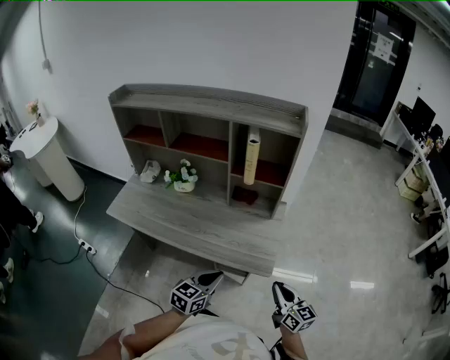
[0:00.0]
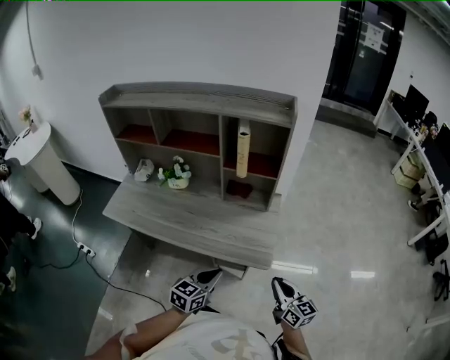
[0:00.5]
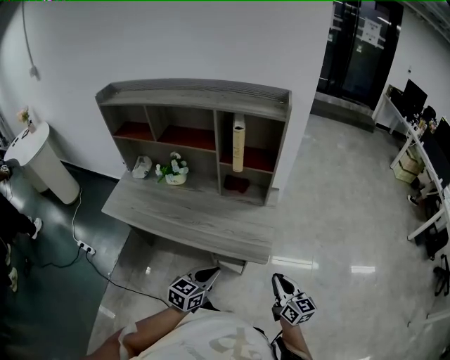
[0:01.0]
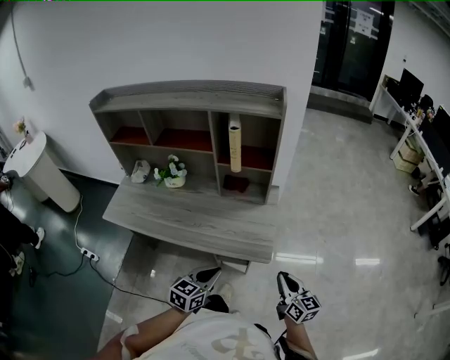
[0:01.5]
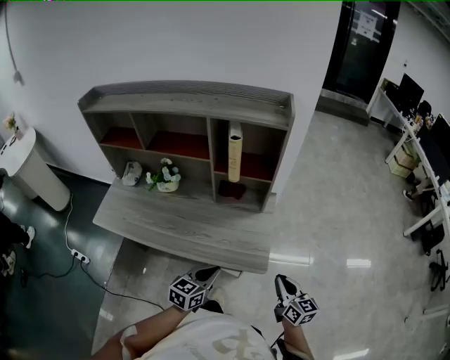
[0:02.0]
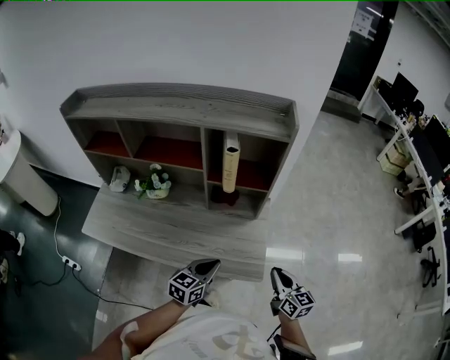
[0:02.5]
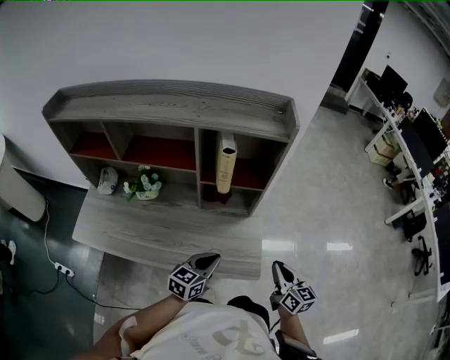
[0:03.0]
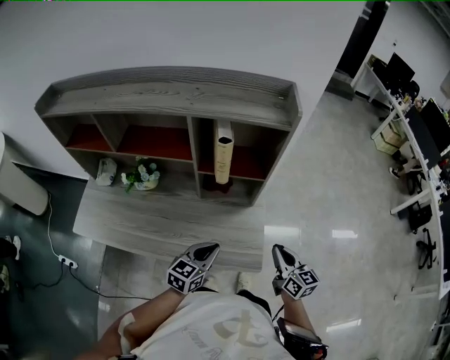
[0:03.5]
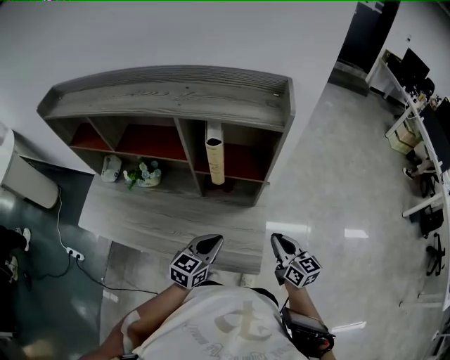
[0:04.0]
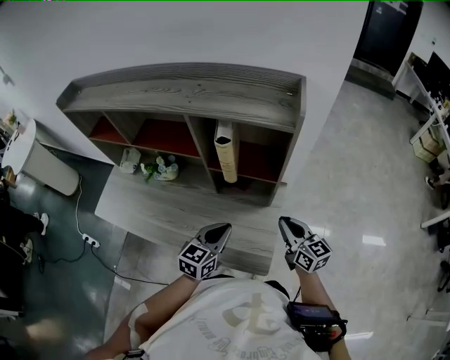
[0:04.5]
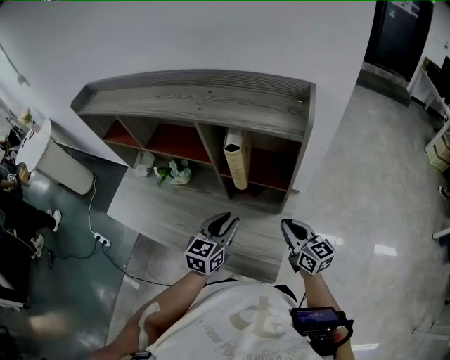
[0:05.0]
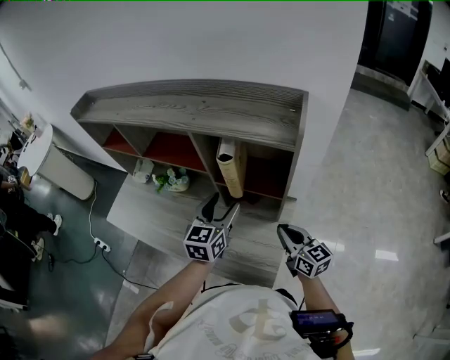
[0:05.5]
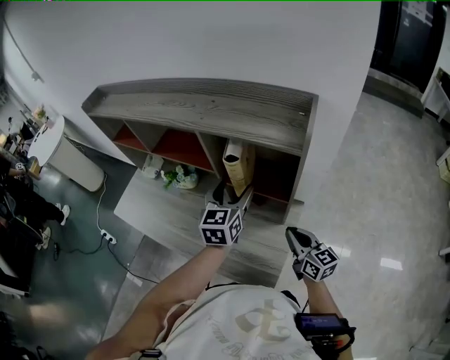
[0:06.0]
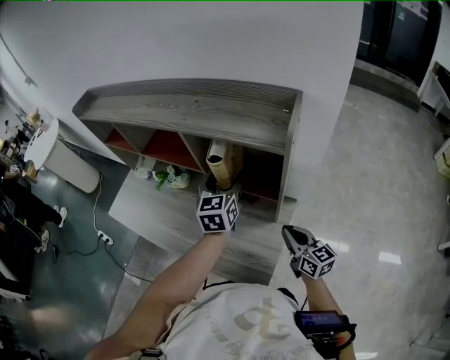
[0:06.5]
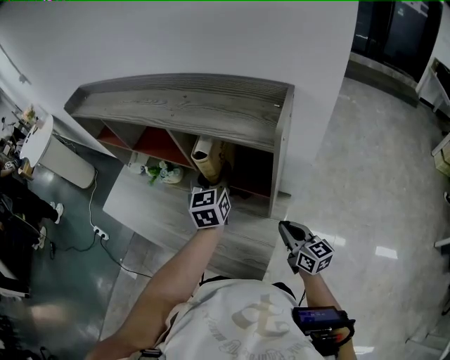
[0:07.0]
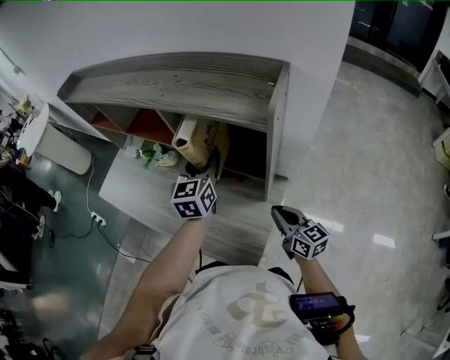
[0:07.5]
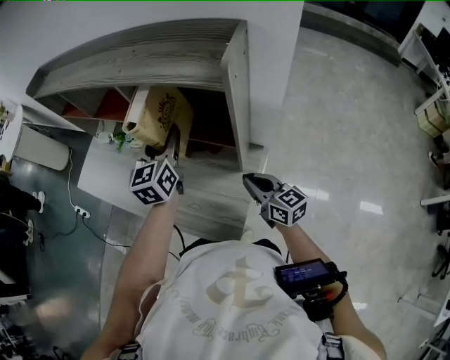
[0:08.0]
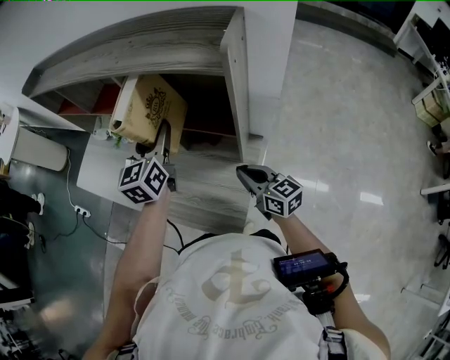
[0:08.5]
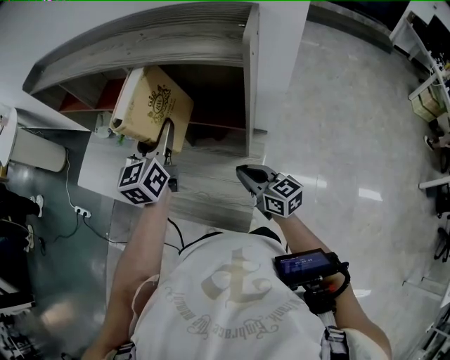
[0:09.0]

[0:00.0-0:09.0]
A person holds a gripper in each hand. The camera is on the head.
0:00.0 to 0:02.0: The grippers both shift forward by roughly 5 cm.
0:02.0 to 0:04.5: The grippers both shift forward by approximately 25 cm.
0:04.5 to 0:07.0: The right gripper shifts by some 5 cm. The left gripper shifts roughly 25 cm forward and upward, changes its angle by some 40 degrees, and opens.
0:07.0 to 0:09.0: The left gripper moves to the left and backward, some 10 cm. The right gripper shifts roughly 5 cm to the left.

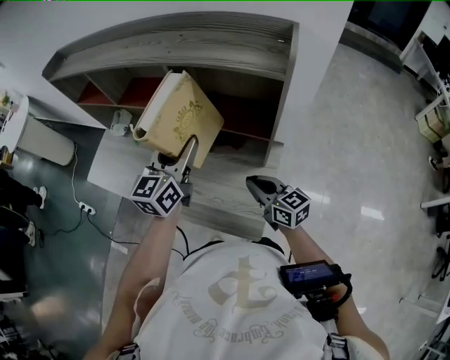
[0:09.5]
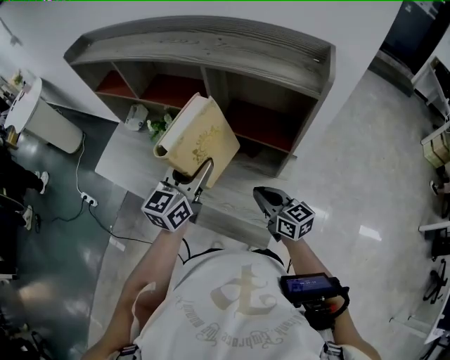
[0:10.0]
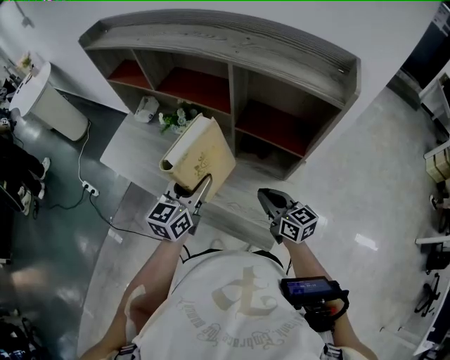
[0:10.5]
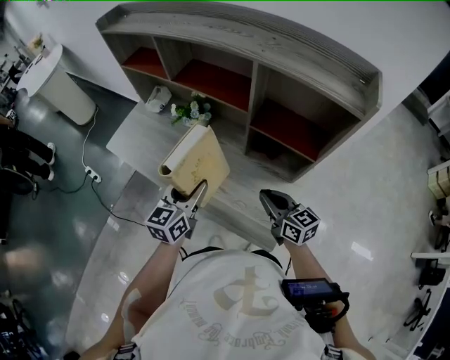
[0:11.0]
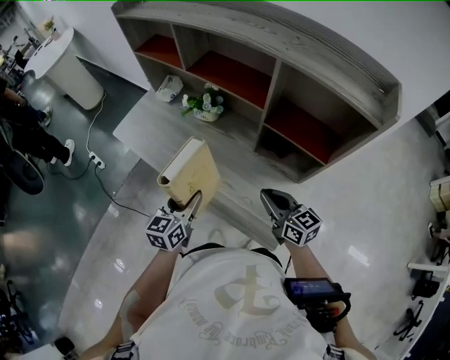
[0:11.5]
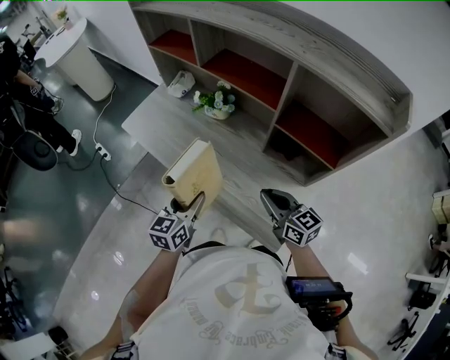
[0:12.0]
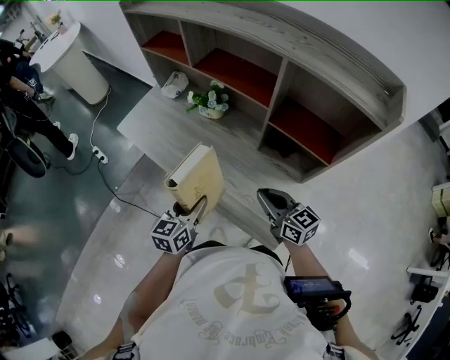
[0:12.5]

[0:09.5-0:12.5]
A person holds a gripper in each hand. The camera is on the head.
0:09.5 to 0:11.0: The left gripper heads to the left, downward and backward, covering roughly 20 cm, while the right gripper moves to the left, roughly 10 cm.
0:11.0 to 0:12.5: The right gripper moves to the left, about 5 cm; the left gripper moves downward, to the left and backward, about 10 cm.

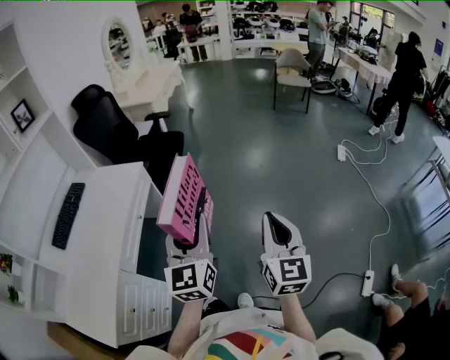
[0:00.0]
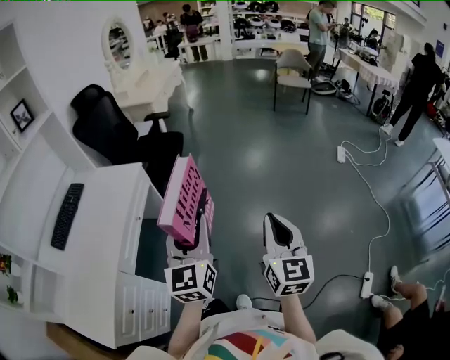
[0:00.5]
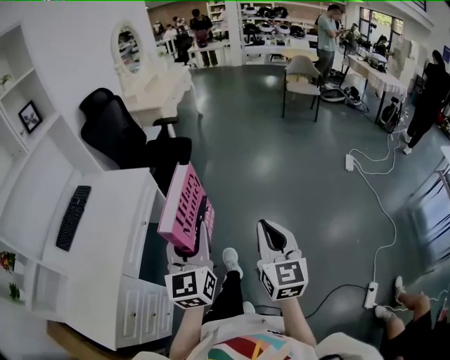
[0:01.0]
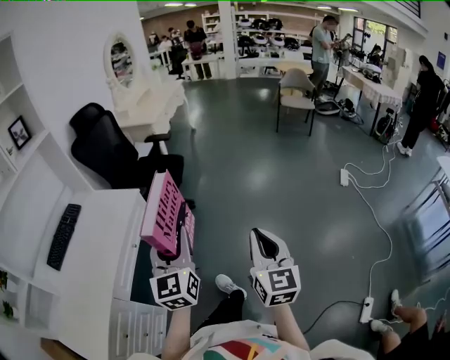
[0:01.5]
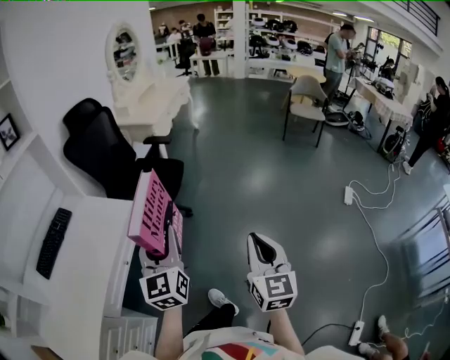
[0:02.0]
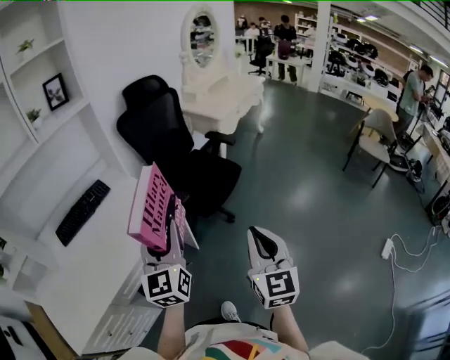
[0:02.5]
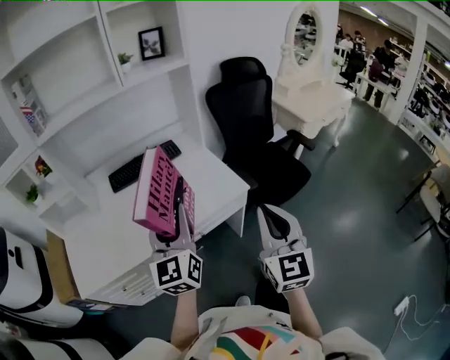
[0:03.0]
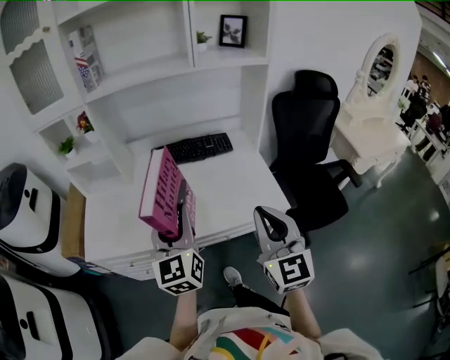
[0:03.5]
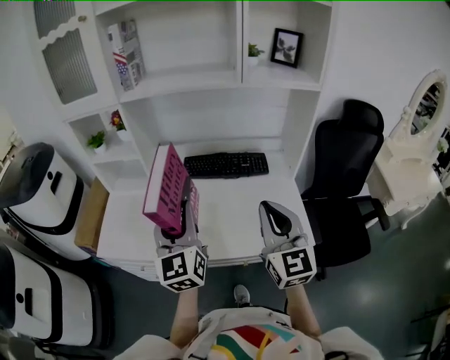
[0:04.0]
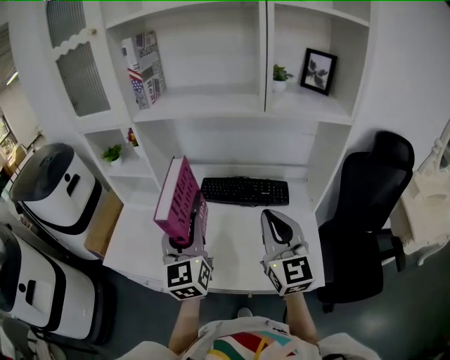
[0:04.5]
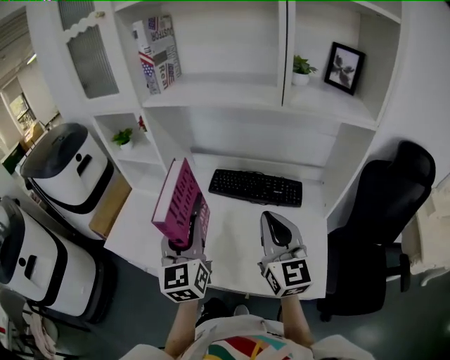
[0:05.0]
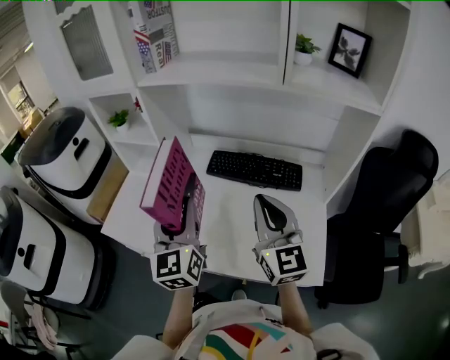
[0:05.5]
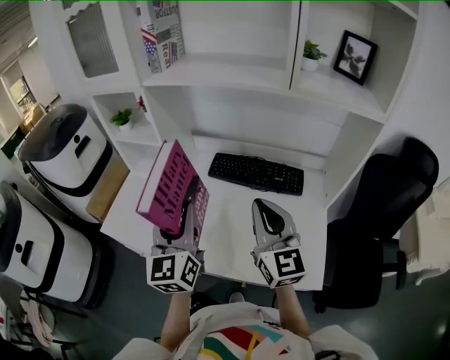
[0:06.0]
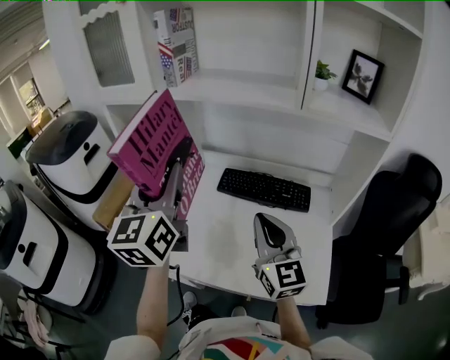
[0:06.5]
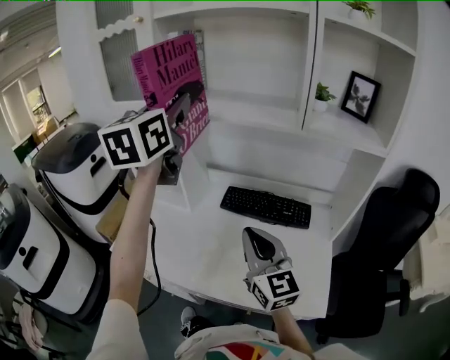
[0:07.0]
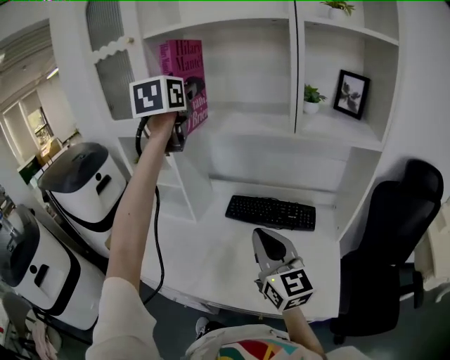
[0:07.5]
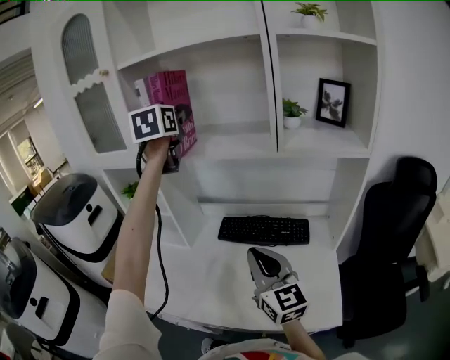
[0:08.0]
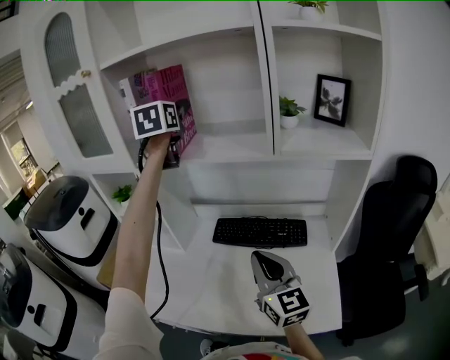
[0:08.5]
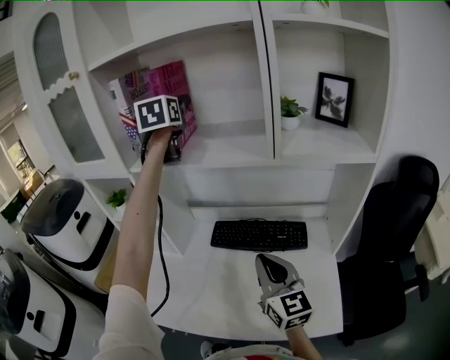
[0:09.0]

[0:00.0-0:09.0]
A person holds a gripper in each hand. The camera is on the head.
0:00.0 to 0:02.0: The grippers both shift forward by roughly 25 cm.
0:02.0 to 0:04.5: The two grippers travel together, roughly 60 cm. The left gripper changes its angle by approximately 80 degrees. Meanwhile the right gripper rotates roughly 90 degrees.
0:04.5 to 0:07.0: The left gripper moves upward and forward, approximately 30 cm. The right gripper goes about 10 cm to the left.
0:07.0 to 0:09.0: The right gripper heads to the right and forward, covering some 10 cm. Meanwhile the left gripper heads forward, covering approximately 25 cm.

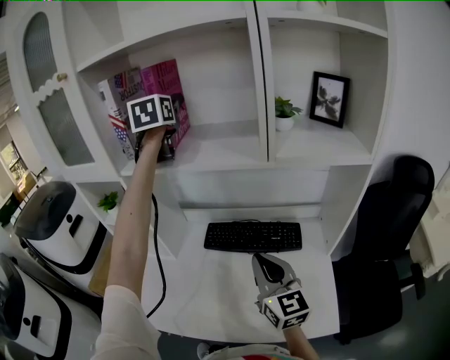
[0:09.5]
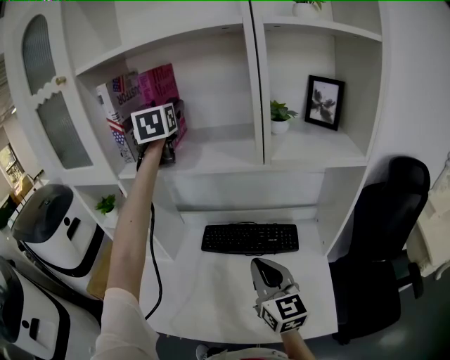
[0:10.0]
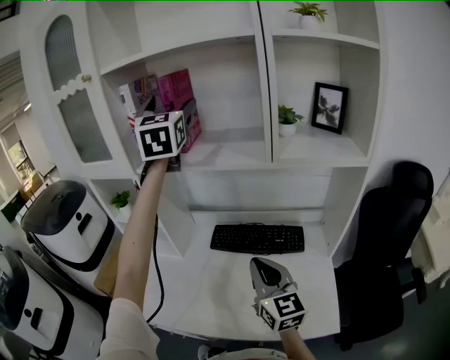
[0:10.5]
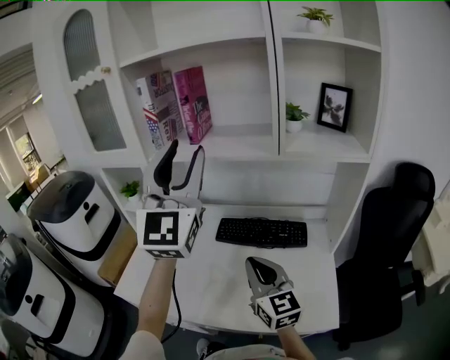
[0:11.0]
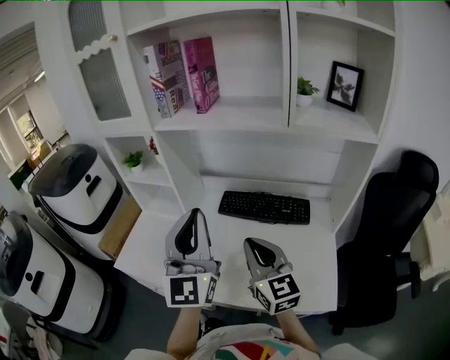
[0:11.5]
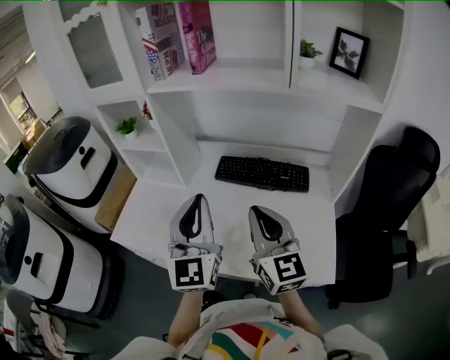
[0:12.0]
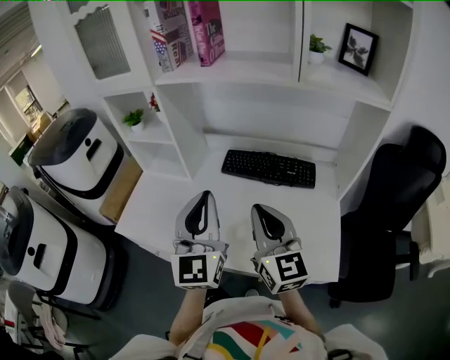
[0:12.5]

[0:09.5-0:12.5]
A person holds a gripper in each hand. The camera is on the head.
0:09.5 to 0:11.0: The right gripper travels backward and to the left by roughly 10 cm. Meanwhile the left gripper shifts some 35 cm backward, points its fingers some 30 degrees further upward, and opens and closes again.
0:11.0 to 0:12.5: The left gripper goes approximately 25 cm downward and backward, swivels roughly 20 degrees, and closes its fingers.

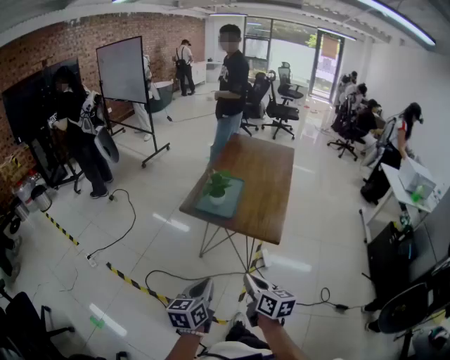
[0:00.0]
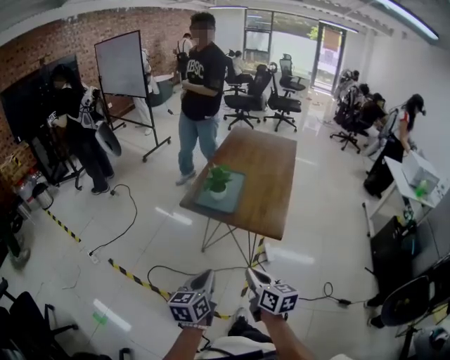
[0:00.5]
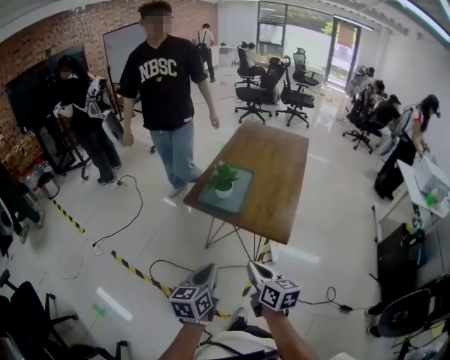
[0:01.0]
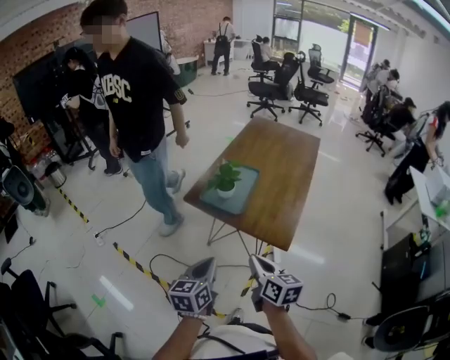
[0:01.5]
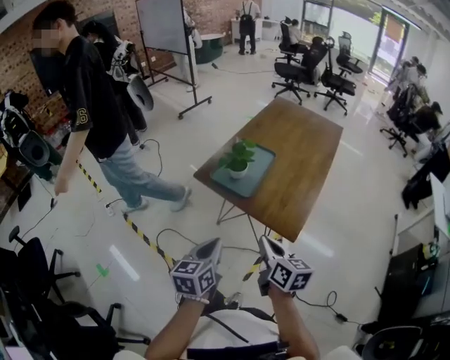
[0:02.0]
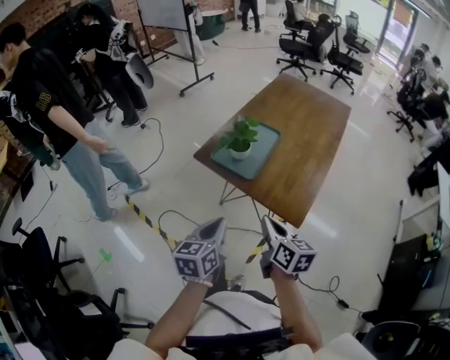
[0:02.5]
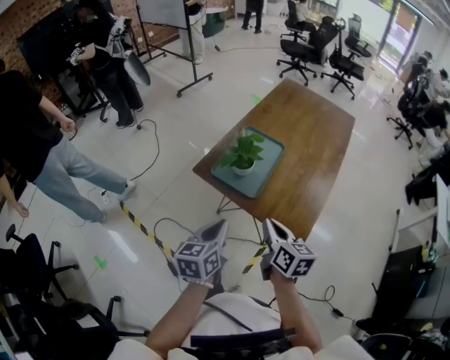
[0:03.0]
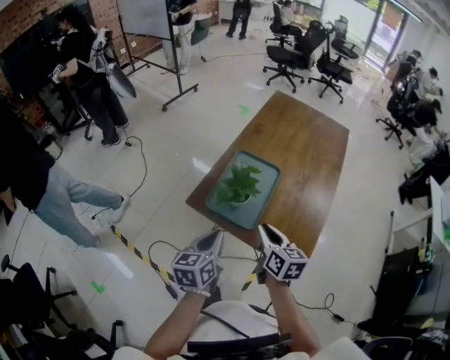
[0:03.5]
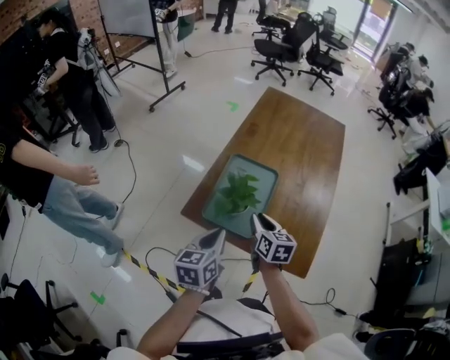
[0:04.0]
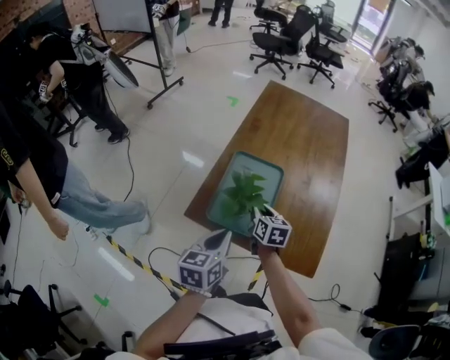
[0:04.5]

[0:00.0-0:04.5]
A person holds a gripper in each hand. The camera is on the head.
0:00.0 to 0:02.0: The grippers both shift forward and to the right by roughly 20 cm.
0:02.0 to 0:04.5: Both grippers move forward, roughly 35 cm. The right gripper rotates some 20 degrees, and opens.
